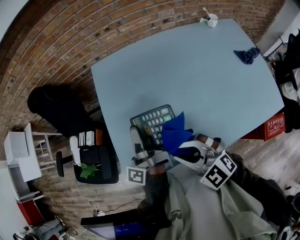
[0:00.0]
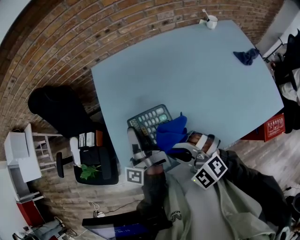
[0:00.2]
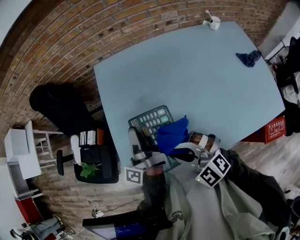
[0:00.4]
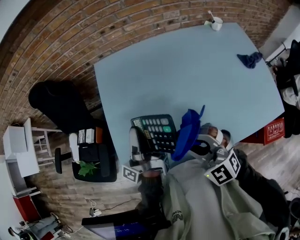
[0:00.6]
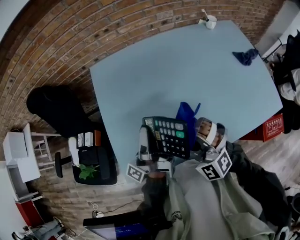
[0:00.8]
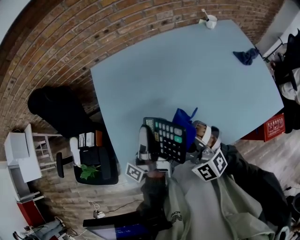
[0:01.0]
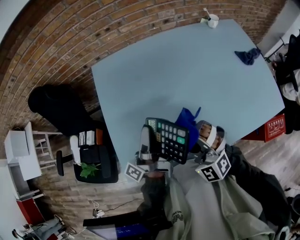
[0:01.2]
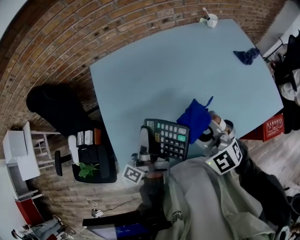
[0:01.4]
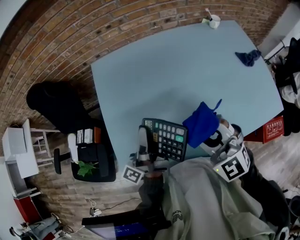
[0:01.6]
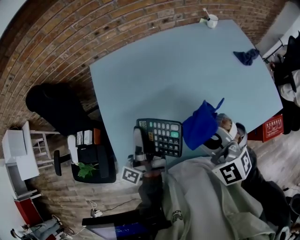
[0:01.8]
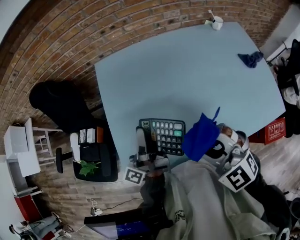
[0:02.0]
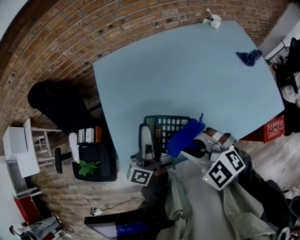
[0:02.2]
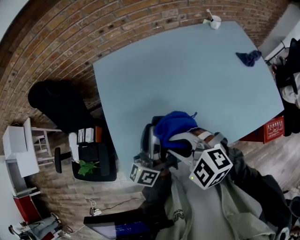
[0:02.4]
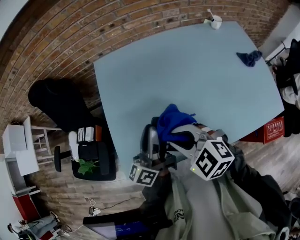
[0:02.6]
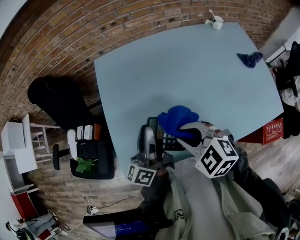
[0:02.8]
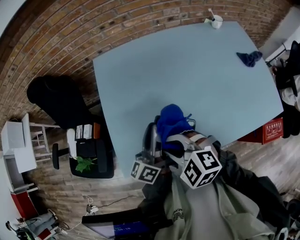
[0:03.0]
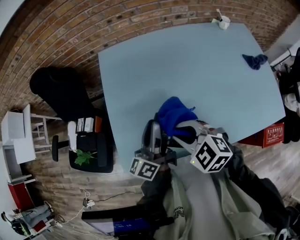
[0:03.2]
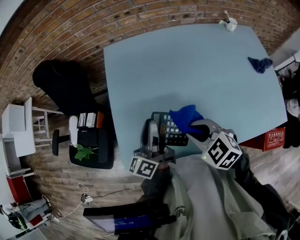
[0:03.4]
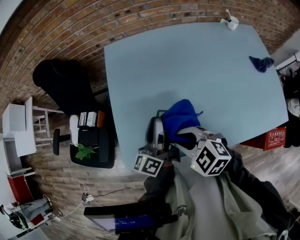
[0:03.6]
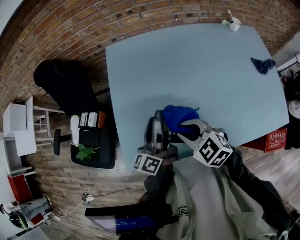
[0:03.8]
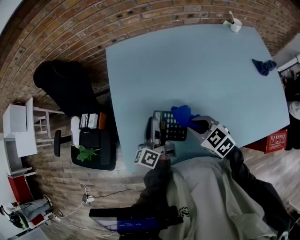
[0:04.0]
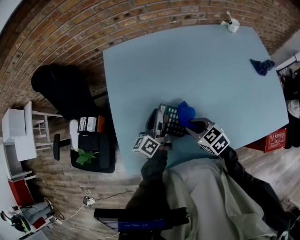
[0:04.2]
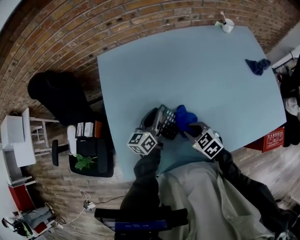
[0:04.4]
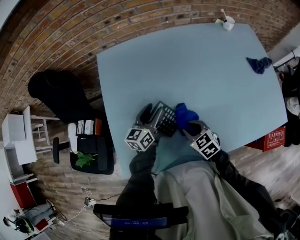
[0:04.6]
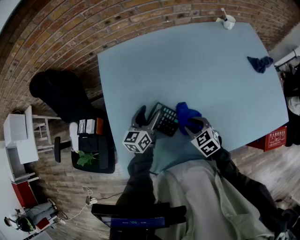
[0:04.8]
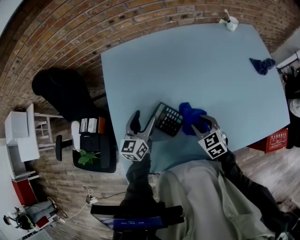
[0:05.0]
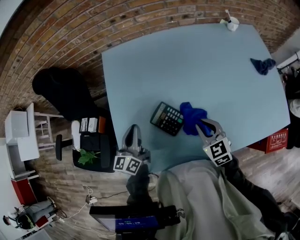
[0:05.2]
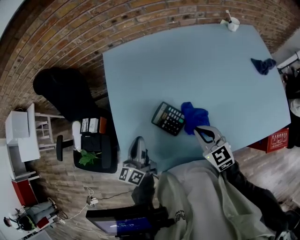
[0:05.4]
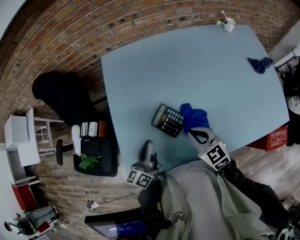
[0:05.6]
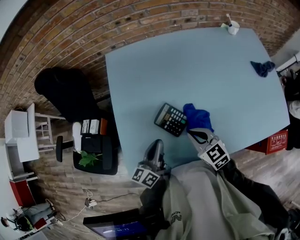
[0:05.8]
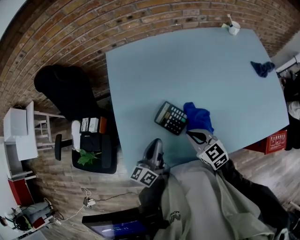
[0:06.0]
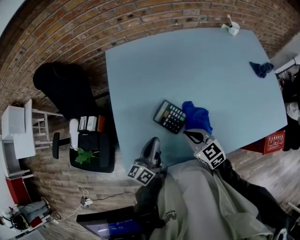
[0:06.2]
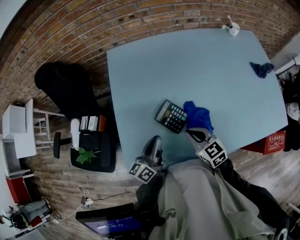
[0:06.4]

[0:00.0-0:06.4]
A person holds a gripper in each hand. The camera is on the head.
0:00.0 to 0:01.6: The right gripper moves to the right and upward, approximately 10 cm.
0:01.6 to 0:03.2: The right gripper swings left and right, roughly 10 cm each way, with 3 reversals, and swivels approximately 30 degrees; the left gripper rotates roughly 30 degrees.
0:03.2 to 0:04.8: The left gripper is displaced downward and forward by approximately 15 cm, changes its angle by about 40 degrees, and opens up. Meanwhile the right gripper travels downward and to the right by some 20 cm, and swivels some 30 degrees.
0:04.8 to 0:06.4: The left gripper is displaced backward and to the left by some 15 cm, changes its angle by roughly 30 degrees, and closes up, while the right gripper shifts some 10 cm upward and to the left, and closes.

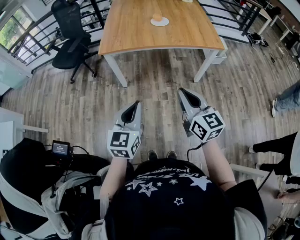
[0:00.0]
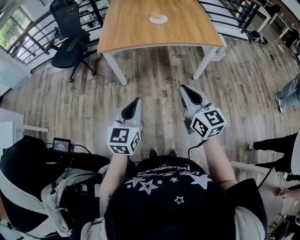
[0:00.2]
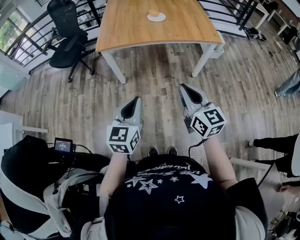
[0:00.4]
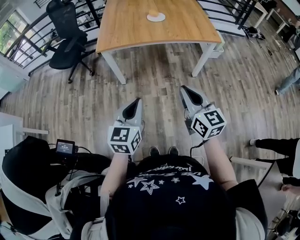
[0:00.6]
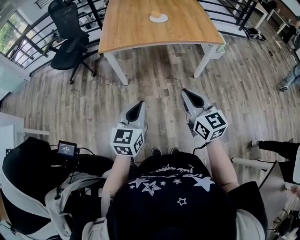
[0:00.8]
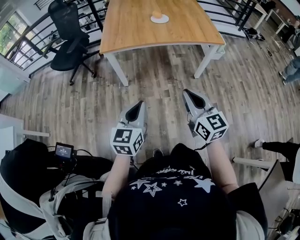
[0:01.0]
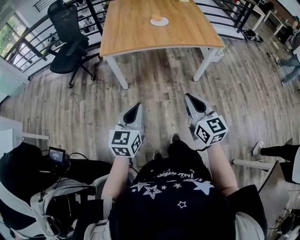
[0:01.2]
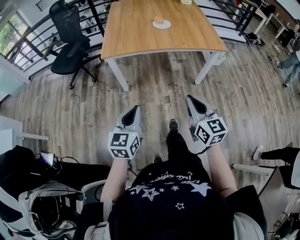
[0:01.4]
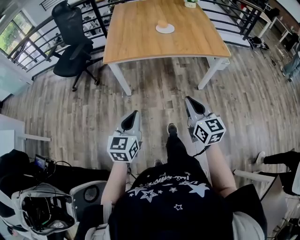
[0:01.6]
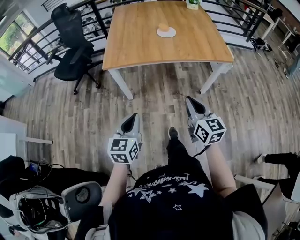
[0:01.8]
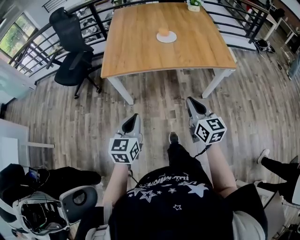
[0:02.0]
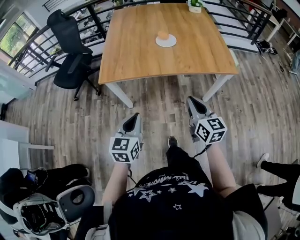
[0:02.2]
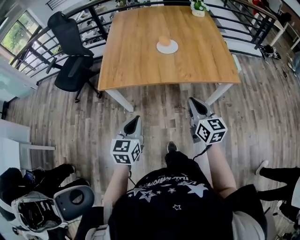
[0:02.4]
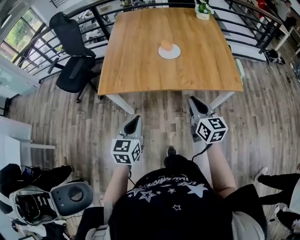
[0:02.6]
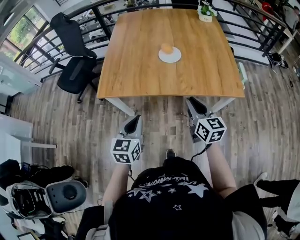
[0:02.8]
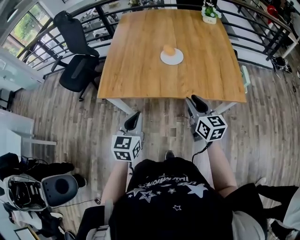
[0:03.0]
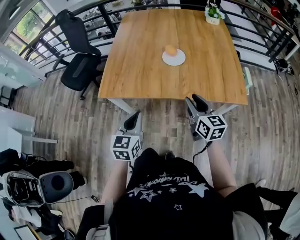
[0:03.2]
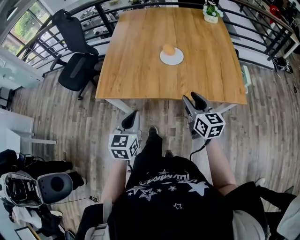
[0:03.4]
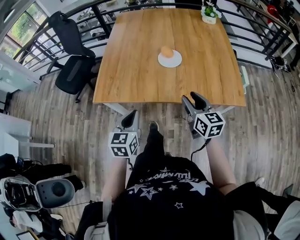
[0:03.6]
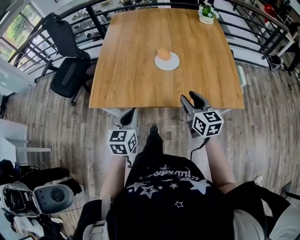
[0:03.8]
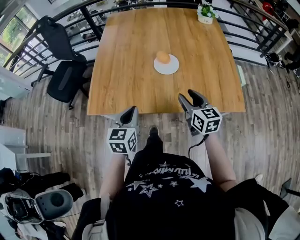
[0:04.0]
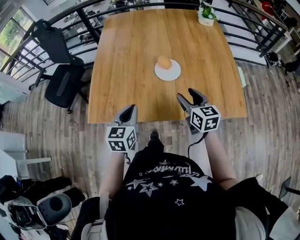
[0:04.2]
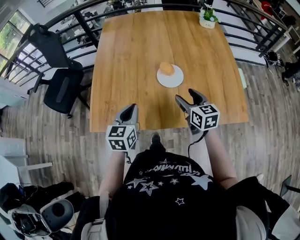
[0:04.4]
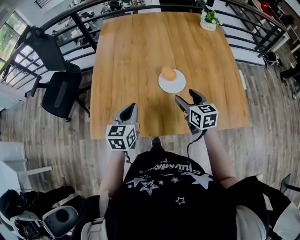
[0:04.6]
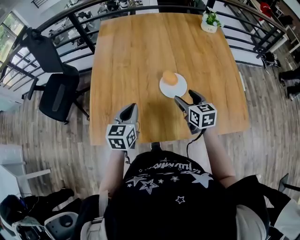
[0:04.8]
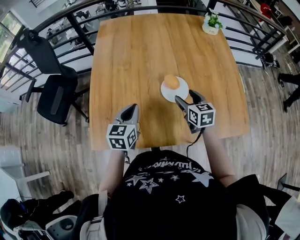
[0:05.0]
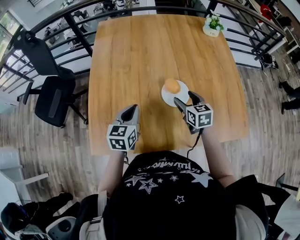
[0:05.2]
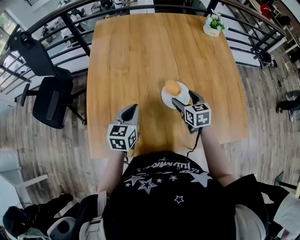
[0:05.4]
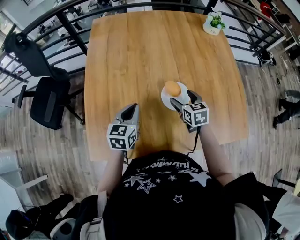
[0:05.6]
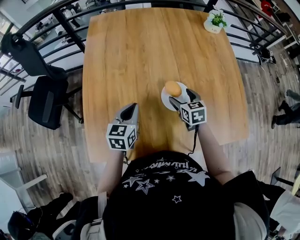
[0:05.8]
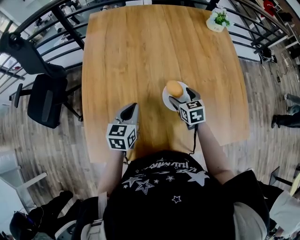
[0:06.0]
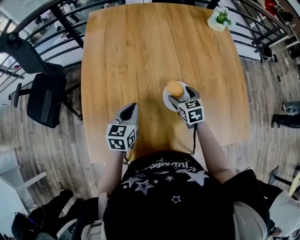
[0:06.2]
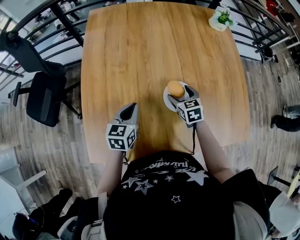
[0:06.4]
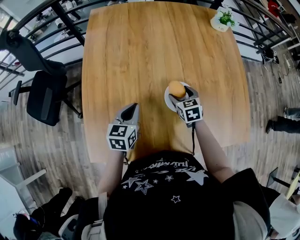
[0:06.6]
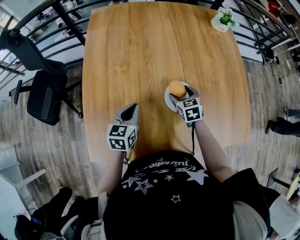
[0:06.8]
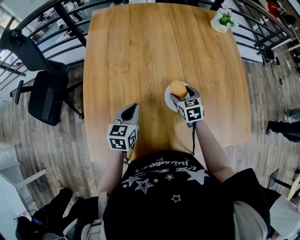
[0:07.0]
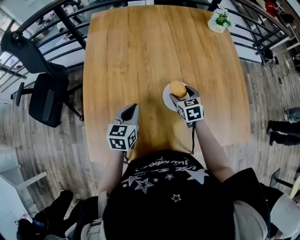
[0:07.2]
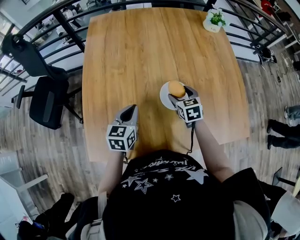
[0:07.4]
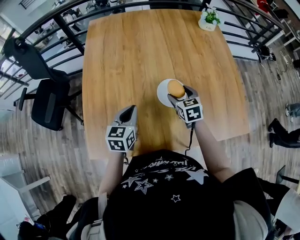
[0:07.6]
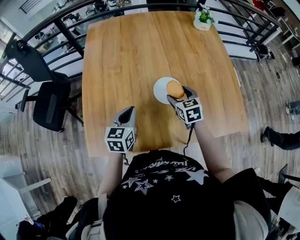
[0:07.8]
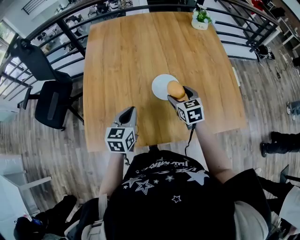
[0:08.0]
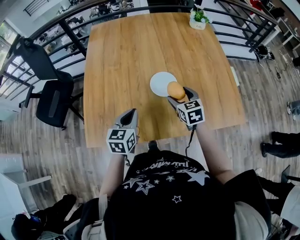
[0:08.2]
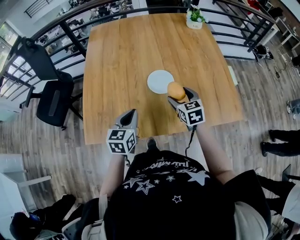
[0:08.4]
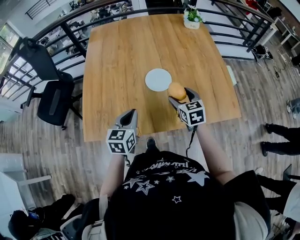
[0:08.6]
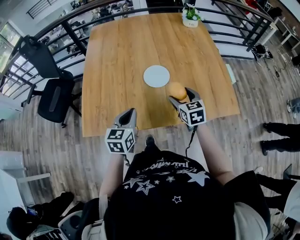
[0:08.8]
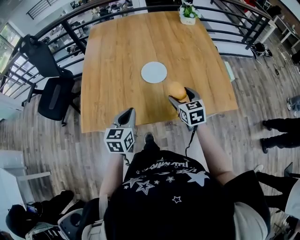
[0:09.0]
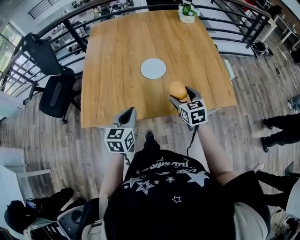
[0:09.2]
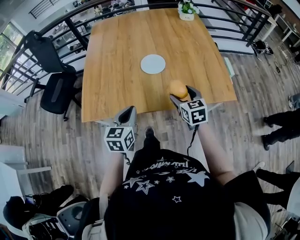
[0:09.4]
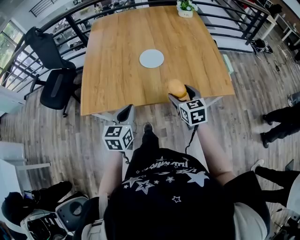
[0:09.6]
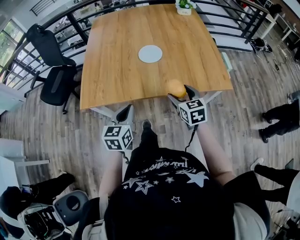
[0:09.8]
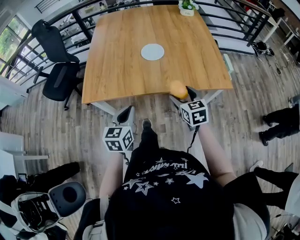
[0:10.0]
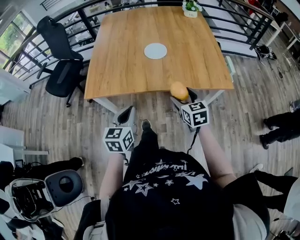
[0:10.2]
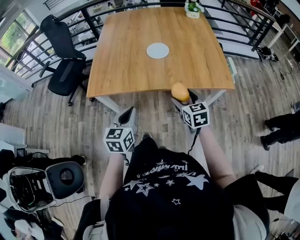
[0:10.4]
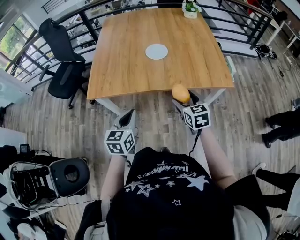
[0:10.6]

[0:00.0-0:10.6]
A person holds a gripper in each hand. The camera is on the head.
0:00.0 to 0:01.6: The left gripper moves to the left and forward, roughly 10 cm. Meanwhile the right gripper shifts approximately 5 cm forward.
0:01.6 to 0:03.0: The left gripper goes some 30 cm forward and to the right, while the right gripper moves forward, some 35 cm.
0:03.0 to 0:04.6: The grippers both shift forward by roughly 25 cm. The right gripper opens up.
0:04.6 to 0:06.0: The grippers both shift forward and downward by approximately 15 cm.
0:06.0 to 0:07.6: There are only small adjustments of the grippers.
0:07.6 to 0:09.0: Both grippers travel together backward and to the right, about 20 cm.
0:09.0 to 0:10.6: The two grippers go approximately 20 cm backward.

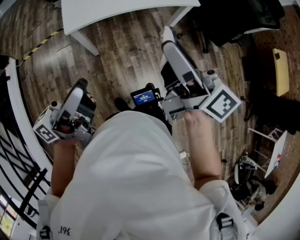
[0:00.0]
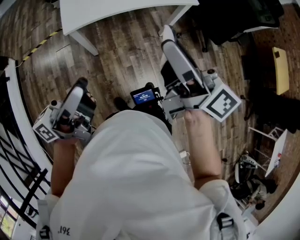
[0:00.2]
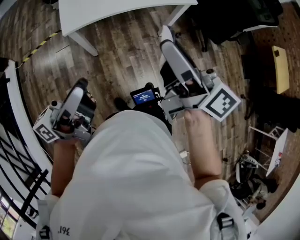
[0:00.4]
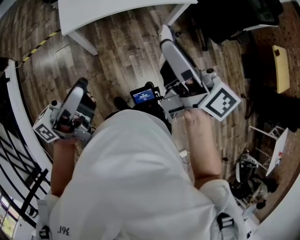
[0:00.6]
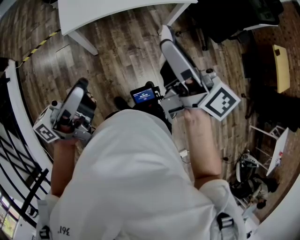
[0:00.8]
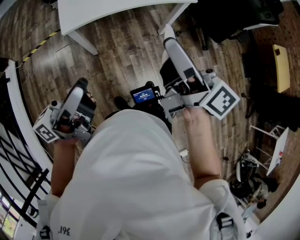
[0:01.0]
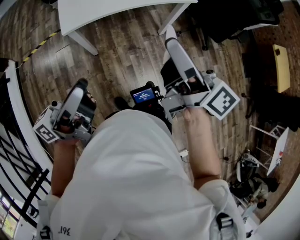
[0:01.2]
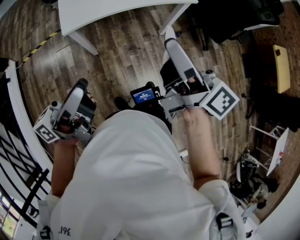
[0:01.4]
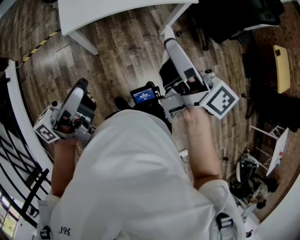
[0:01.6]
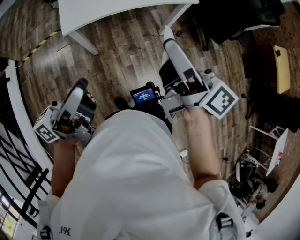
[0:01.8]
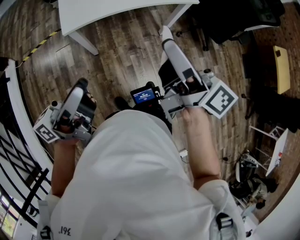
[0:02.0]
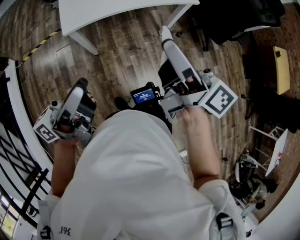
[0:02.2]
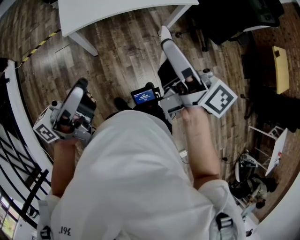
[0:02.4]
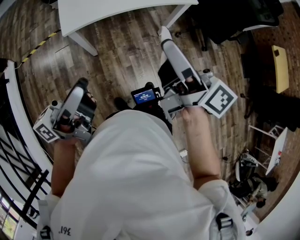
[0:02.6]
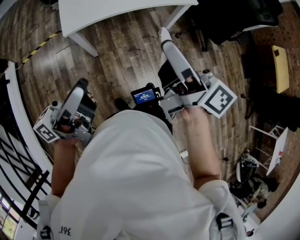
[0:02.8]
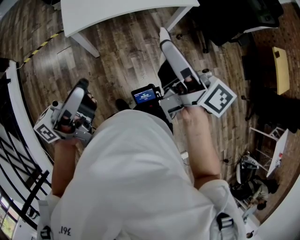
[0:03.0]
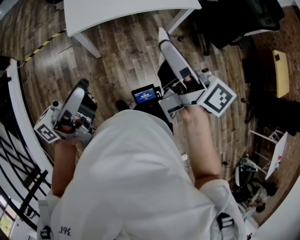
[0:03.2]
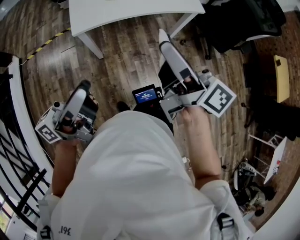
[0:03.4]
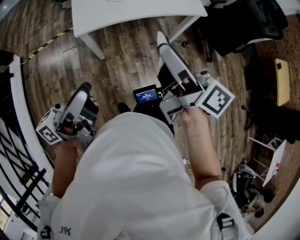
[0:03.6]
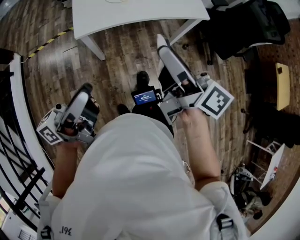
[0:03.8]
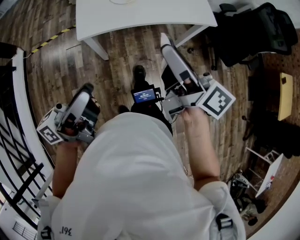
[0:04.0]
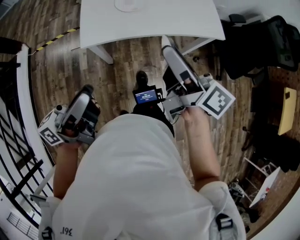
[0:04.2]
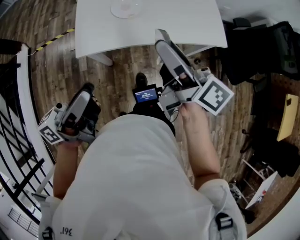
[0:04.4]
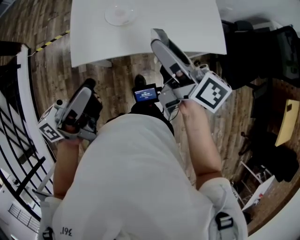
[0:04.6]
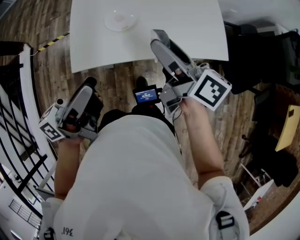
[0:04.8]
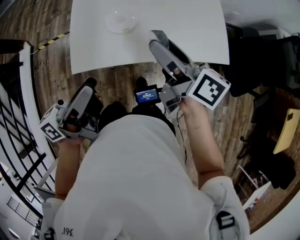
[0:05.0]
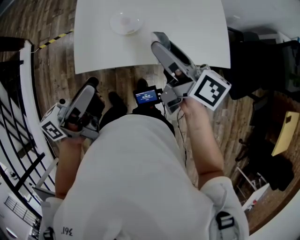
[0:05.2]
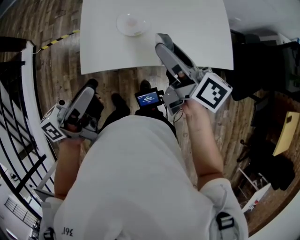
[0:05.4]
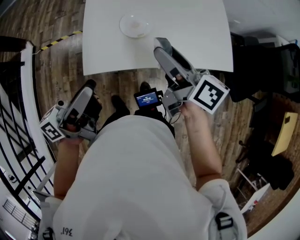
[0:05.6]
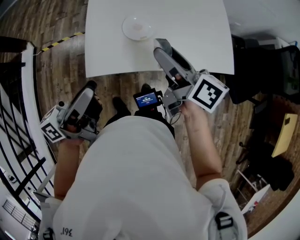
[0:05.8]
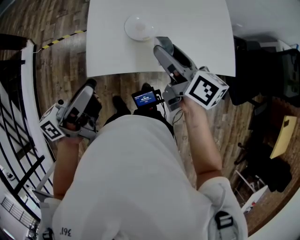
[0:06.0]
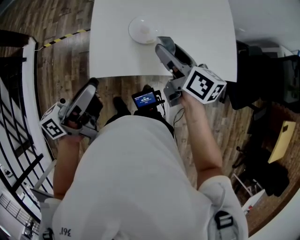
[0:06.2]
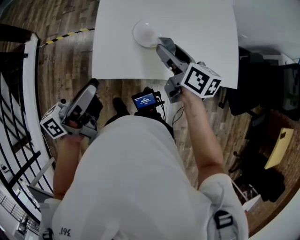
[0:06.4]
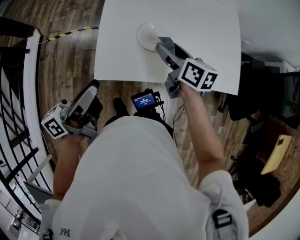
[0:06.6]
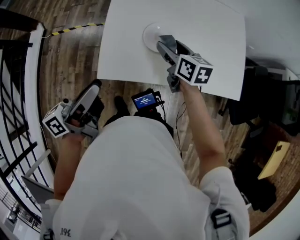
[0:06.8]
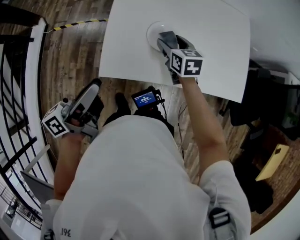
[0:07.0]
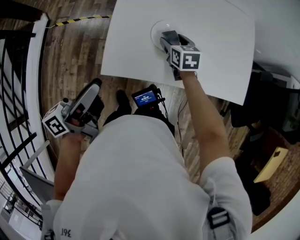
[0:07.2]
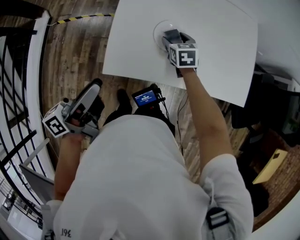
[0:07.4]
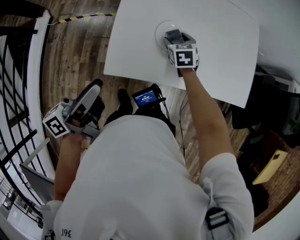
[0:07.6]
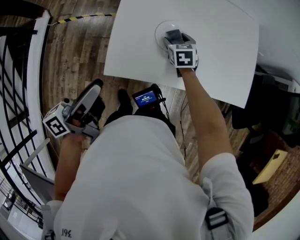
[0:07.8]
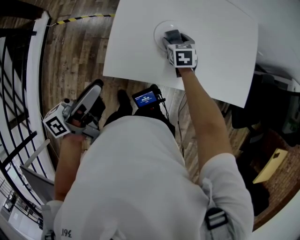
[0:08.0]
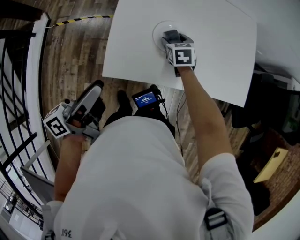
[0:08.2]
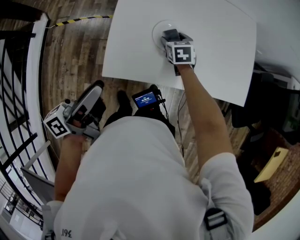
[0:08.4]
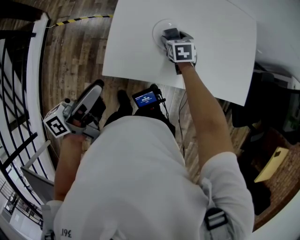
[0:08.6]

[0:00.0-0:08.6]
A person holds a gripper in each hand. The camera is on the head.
0:00.0 to 0:01.4: There are only small adjustments of the grippers.
0:01.4 to 0:02.8: Both grippers stay about where they are.
0:02.8 to 0:04.4: The two grippers go about 25 cm forward.
0:04.4 to 0:05.8: The two grippers go roughly 15 cm forward.
0:05.8 to 0:07.2: The left gripper heads to the left and downward, covering roughly 10 cm; the right gripper moves downward and forward, roughly 25 cm, and tips its fingers downward by roughly 30 degrees.
0:07.2 to 0:08.6: The grippers move only a little.
